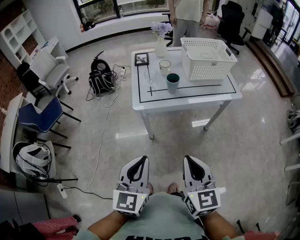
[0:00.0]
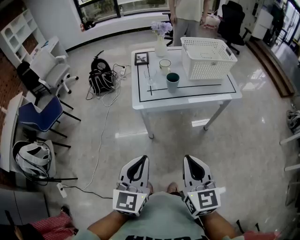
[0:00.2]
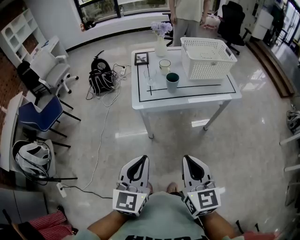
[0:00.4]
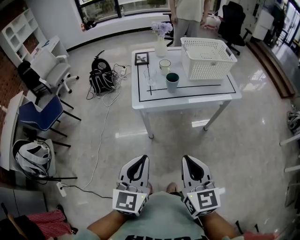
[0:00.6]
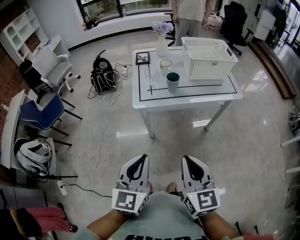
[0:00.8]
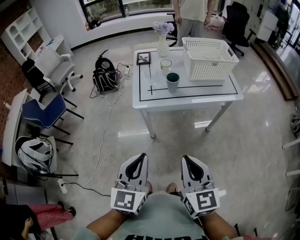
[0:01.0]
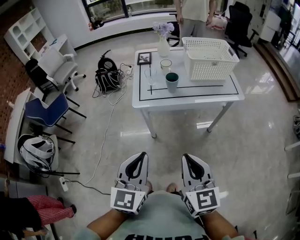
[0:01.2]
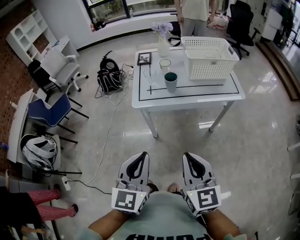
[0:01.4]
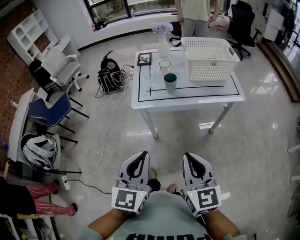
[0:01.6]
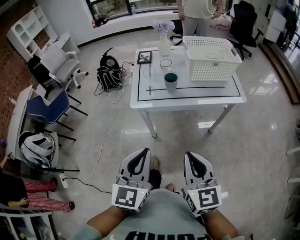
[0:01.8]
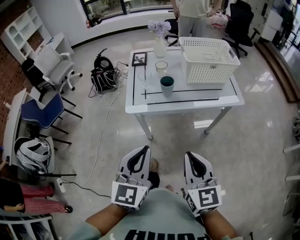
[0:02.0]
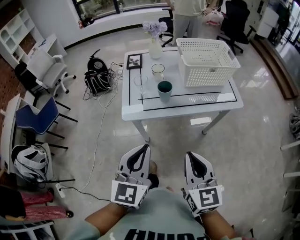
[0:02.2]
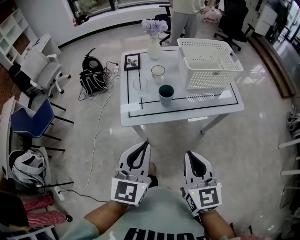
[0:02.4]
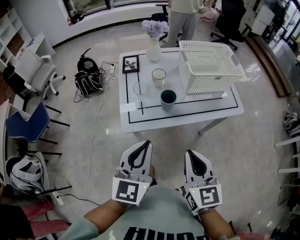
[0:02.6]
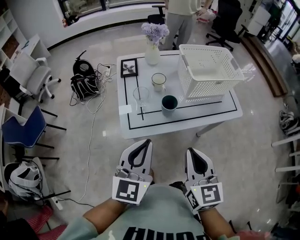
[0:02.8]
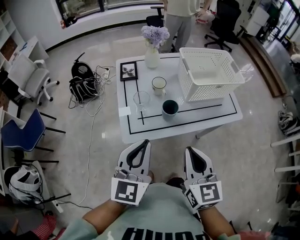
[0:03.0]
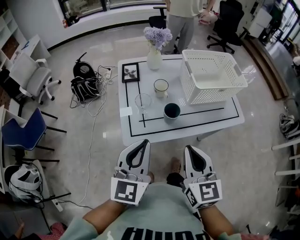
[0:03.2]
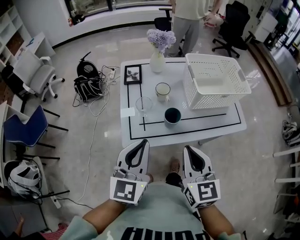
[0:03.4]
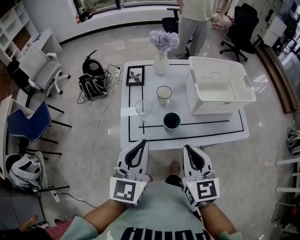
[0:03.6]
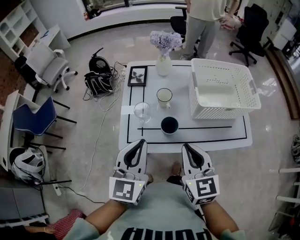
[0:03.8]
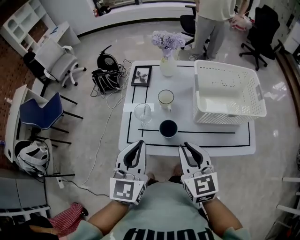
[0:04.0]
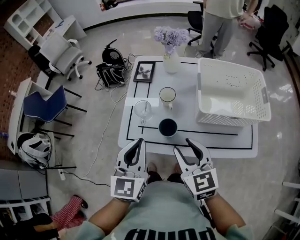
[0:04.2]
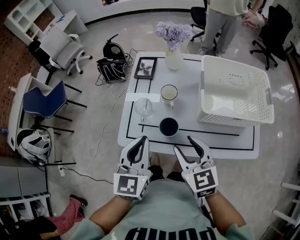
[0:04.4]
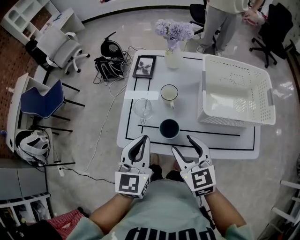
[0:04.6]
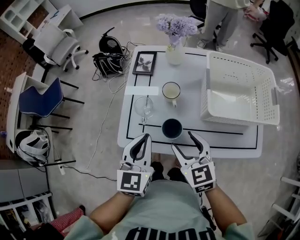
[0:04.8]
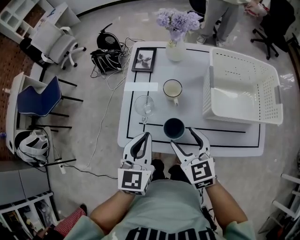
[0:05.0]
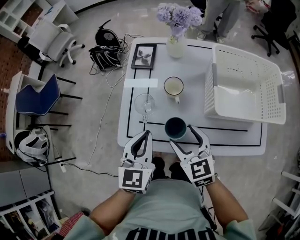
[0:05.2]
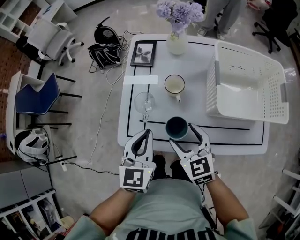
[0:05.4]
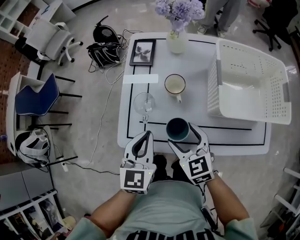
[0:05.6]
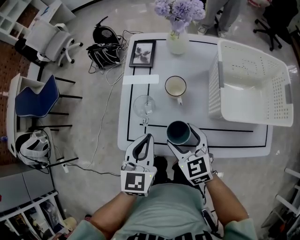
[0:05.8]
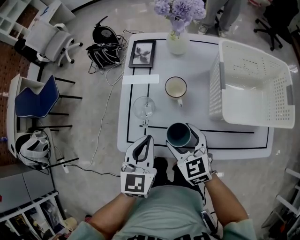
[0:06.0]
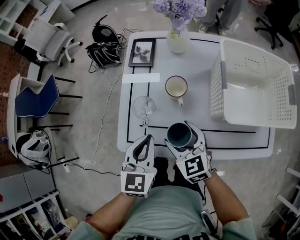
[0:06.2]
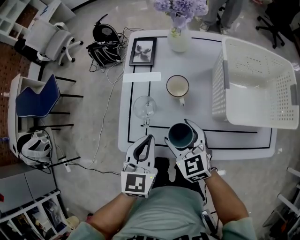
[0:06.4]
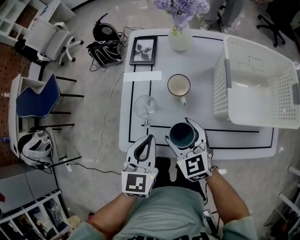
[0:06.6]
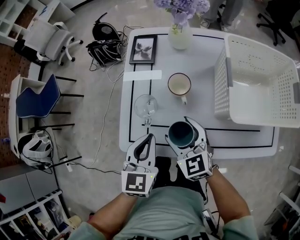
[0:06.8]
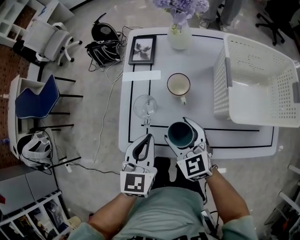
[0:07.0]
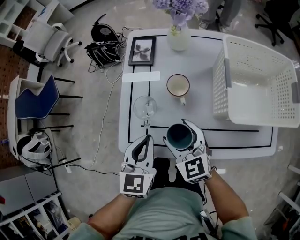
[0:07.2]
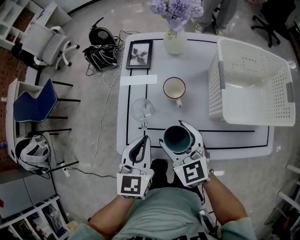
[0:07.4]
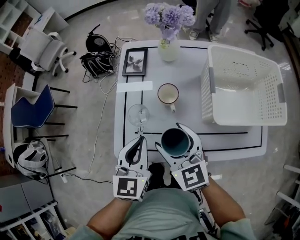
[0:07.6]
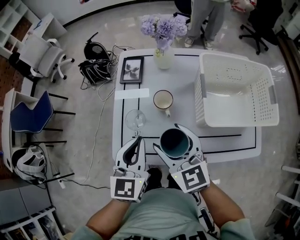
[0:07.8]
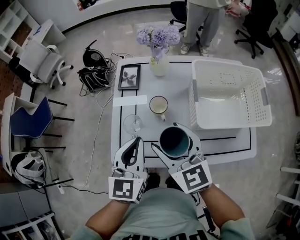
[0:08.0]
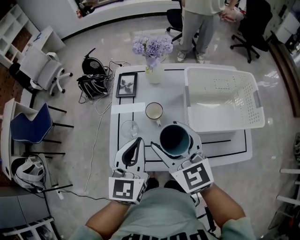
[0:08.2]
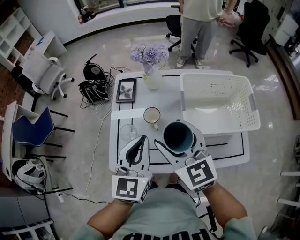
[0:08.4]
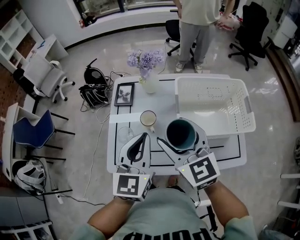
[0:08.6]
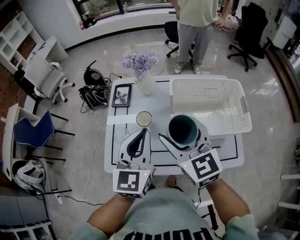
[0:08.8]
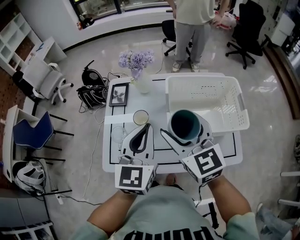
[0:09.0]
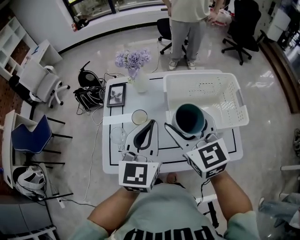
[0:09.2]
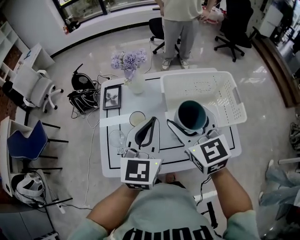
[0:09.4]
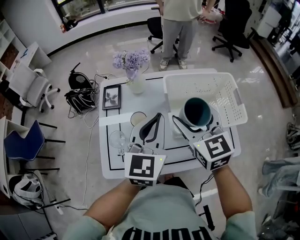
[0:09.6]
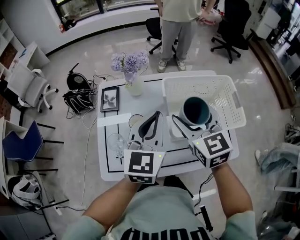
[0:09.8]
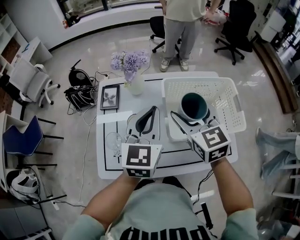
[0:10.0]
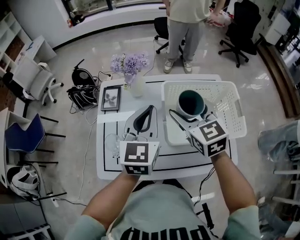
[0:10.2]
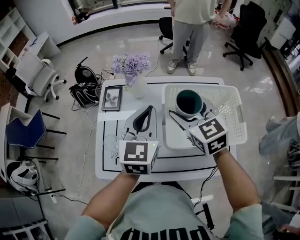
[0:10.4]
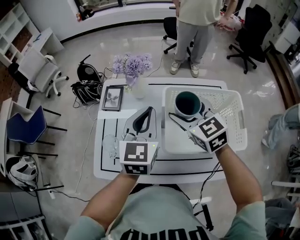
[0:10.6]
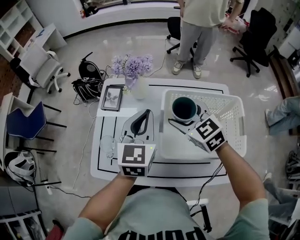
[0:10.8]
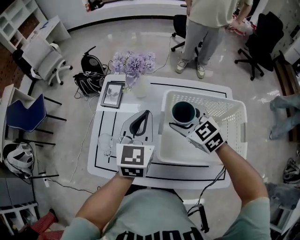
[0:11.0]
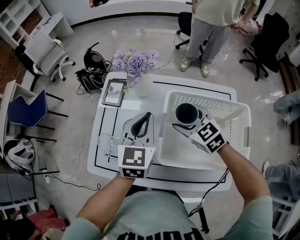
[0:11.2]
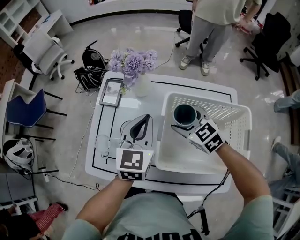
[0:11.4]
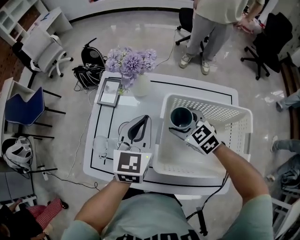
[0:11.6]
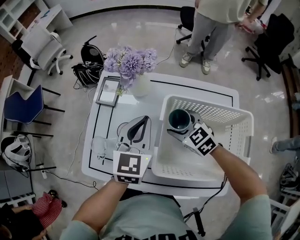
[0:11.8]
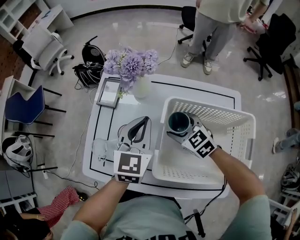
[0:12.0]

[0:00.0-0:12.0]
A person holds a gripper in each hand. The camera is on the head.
0:00.0 to 0:01.6: The two grippers go roughly 5 cm to the right.
0:01.6 to 0:03.0: Both grippers move forward, about 25 cm.
0:03.0 to 0:04.4: The left gripper moves approximately 15 cm, and changes its angle by approximately 30 degrees. The right gripper changes place by about 20 cm, changes its angle by about 30 degrees, and opens up.
0:04.4 to 0:06.0: Both grippers move downward and forward, some 15 cm. The right gripper opens its fingers.
0:06.0 to 0:07.6: The right gripper goes some 10 cm upward.
0:07.6 to 0:09.0: The right gripper is displaced upward and to the right by approximately 20 cm. The left gripper travels to the right and upward by about 20 cm.
0:09.0 to 0:10.4: Both grippers move forward, approximately 10 cm.
0:10.4 to 0:12.0: The left gripper shifts about 10 cm downward and forward. The right gripper is displaced downward by approximately 20 cm, and turns by approximately 30 degrees.

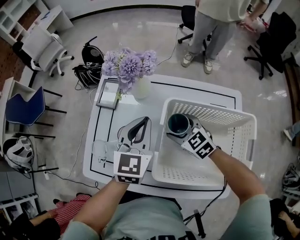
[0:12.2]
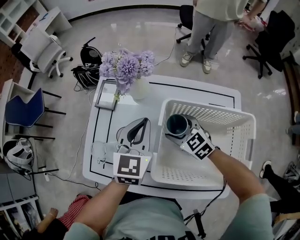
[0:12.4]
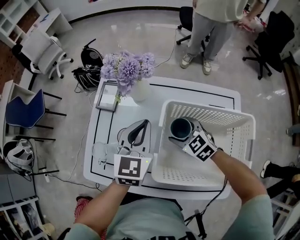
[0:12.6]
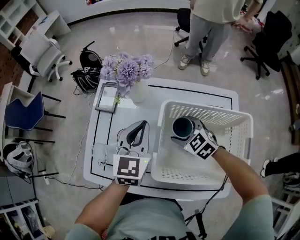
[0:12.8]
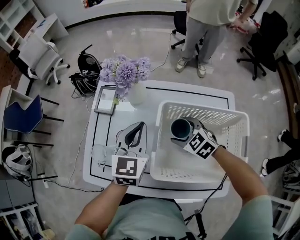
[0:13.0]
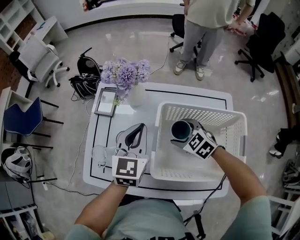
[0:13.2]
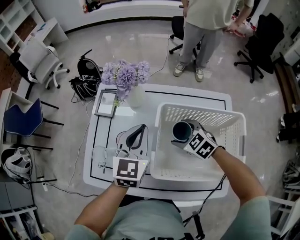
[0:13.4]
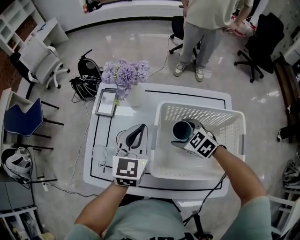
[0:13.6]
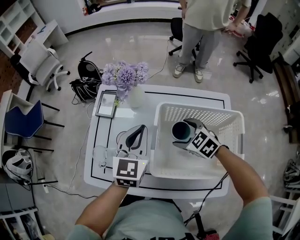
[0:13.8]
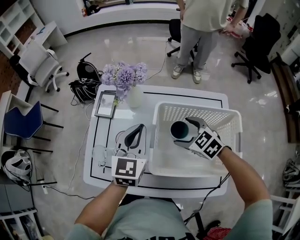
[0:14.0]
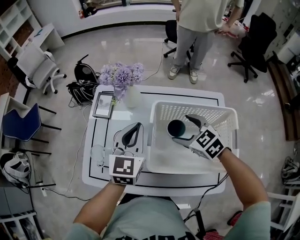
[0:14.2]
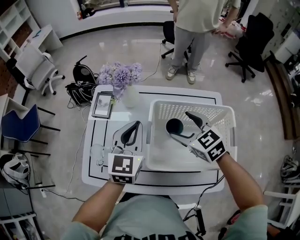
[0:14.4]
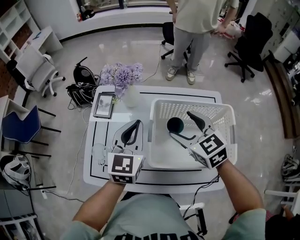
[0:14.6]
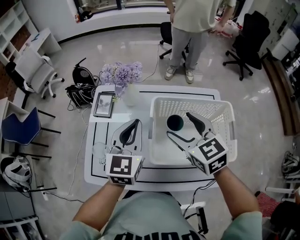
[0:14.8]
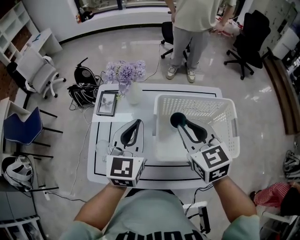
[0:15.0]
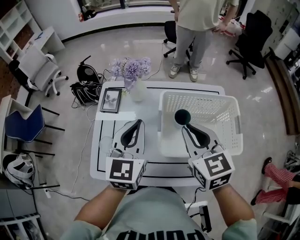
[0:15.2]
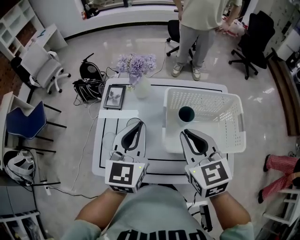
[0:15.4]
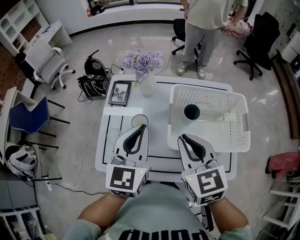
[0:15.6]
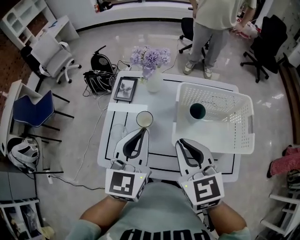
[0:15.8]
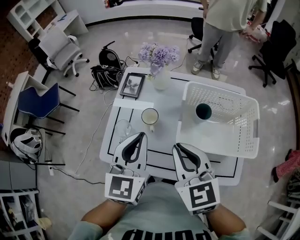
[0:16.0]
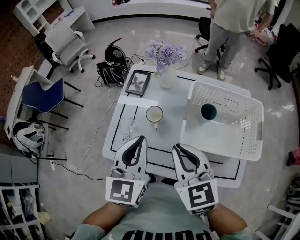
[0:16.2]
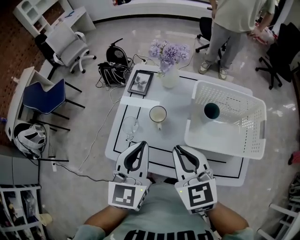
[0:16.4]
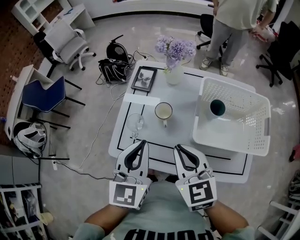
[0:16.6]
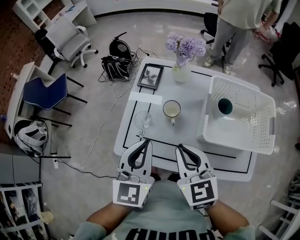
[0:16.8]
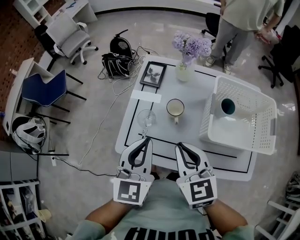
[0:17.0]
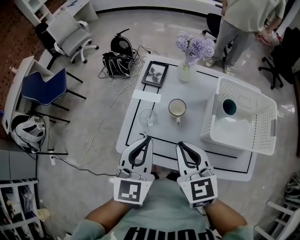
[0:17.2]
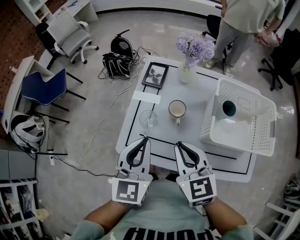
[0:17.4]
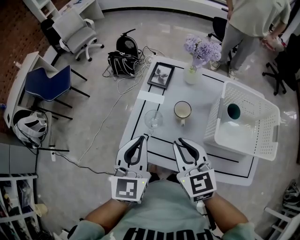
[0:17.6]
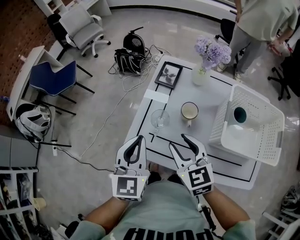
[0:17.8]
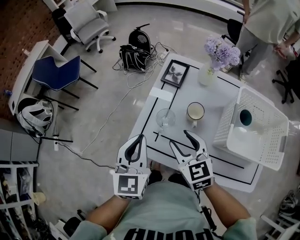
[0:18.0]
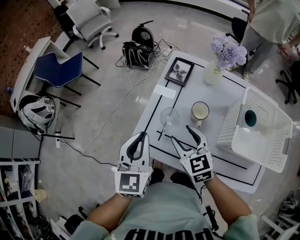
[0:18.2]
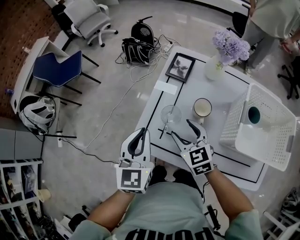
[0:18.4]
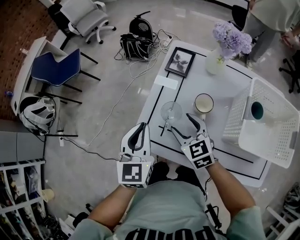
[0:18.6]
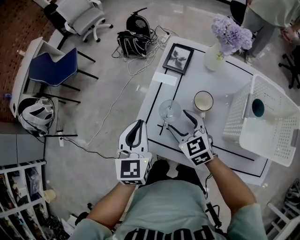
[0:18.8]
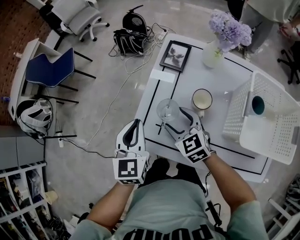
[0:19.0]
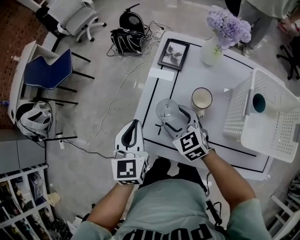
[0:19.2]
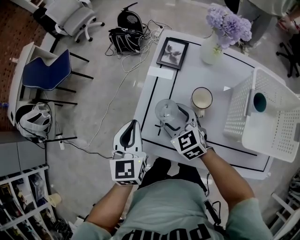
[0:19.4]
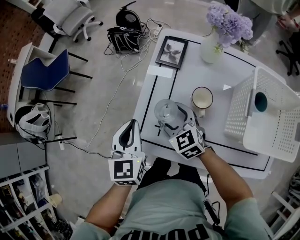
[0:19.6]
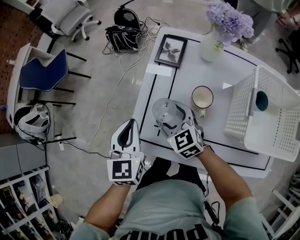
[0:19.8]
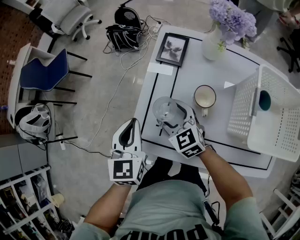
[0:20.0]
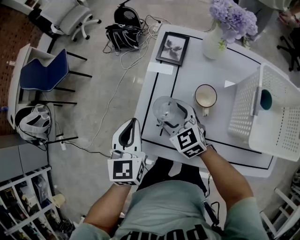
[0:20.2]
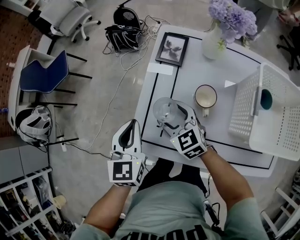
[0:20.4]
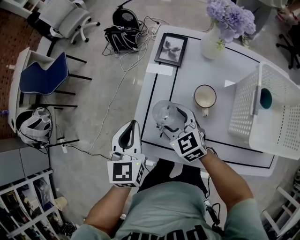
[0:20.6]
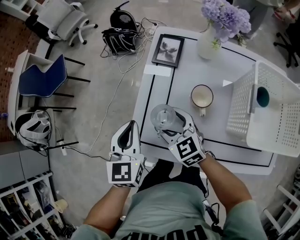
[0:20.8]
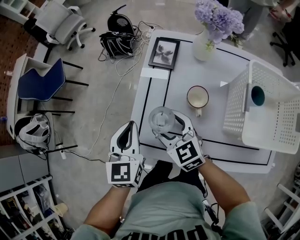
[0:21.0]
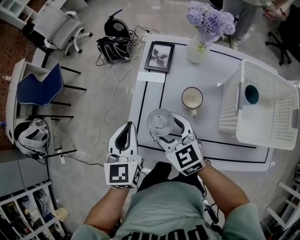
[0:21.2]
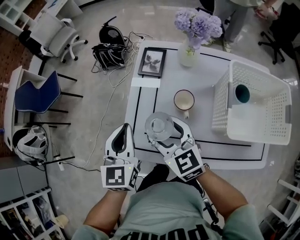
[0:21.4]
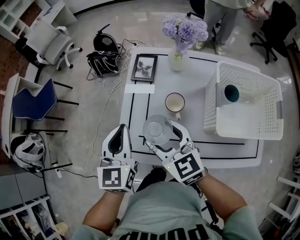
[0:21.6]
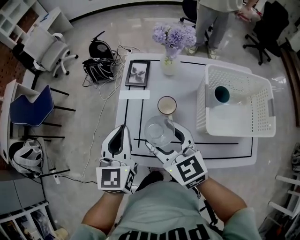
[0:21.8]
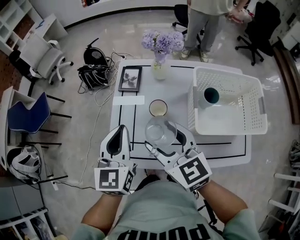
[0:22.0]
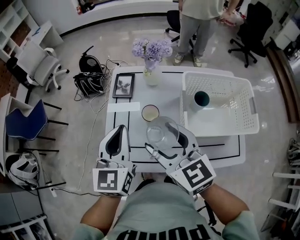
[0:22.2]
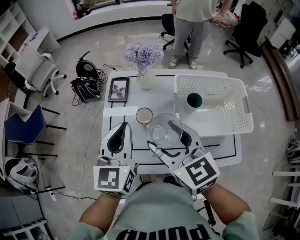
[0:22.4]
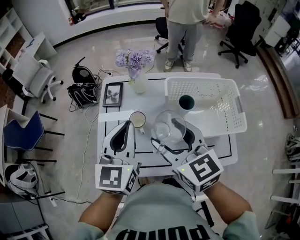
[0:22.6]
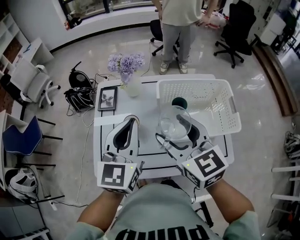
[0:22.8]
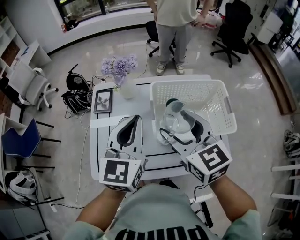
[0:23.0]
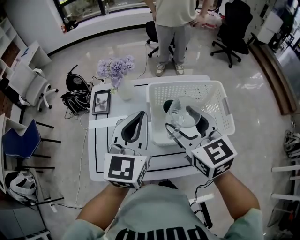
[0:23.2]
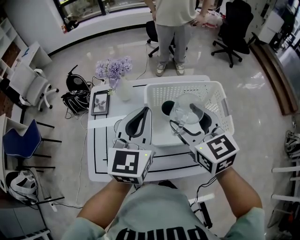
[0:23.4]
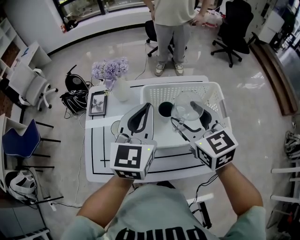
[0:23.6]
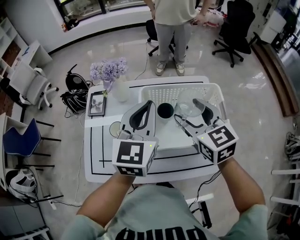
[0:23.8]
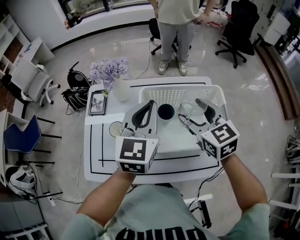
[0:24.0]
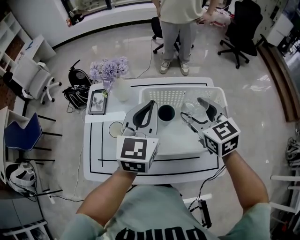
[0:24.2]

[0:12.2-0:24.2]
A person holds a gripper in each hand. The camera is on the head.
0:12.2 to 0:13.8: The right gripper moves roughly 5 cm.
0:13.8 to 0:15.2: The left gripper goes approximately 10 cm upward and backward. Meanwhile the right gripper moves upward, about 20 cm, turns by approximately 40 degrees, and closes.
0:15.2 to 0:16.6: Both grippers move to the left and backward, some 15 cm.
0:16.6 to 0:18.2: The left gripper moves to the left and downward, approximately 15 cm, while the right gripper travels to the left, downward and forward by some 20 cm, and opens its fingers.
0:18.2 to 0:19.8: The two grippers go some 10 cm downward and forward.
0:19.8 to 0:21.2: The right gripper is displaced upward by roughly 5 cm.
0:21.2 to 0:22.6: The right gripper travels upward and to the right by about 25 cm, and swivels roughly 20 degrees, while the left gripper travels to the right and upward by some 25 cm, and swivels roughly 20 degrees.
0:22.6 to 0:24.2: Both grippers move to the right and forward, approximately 25 cm.
